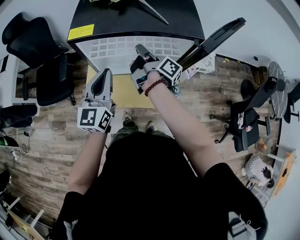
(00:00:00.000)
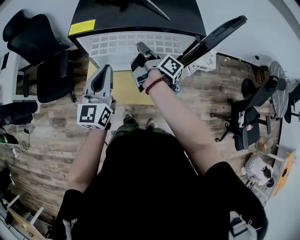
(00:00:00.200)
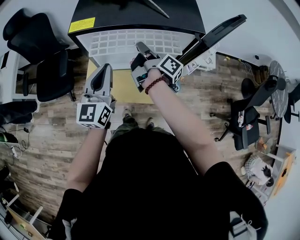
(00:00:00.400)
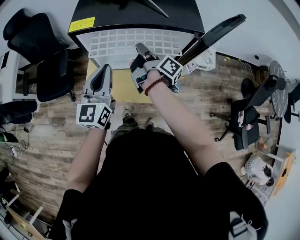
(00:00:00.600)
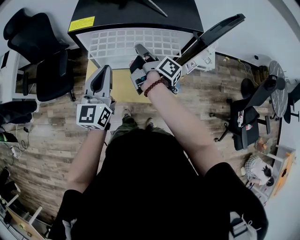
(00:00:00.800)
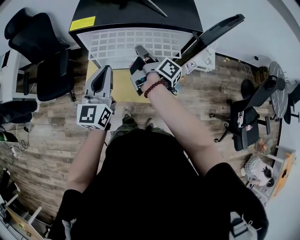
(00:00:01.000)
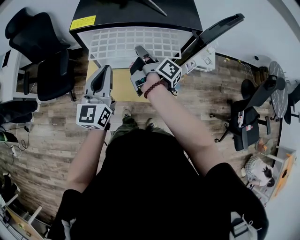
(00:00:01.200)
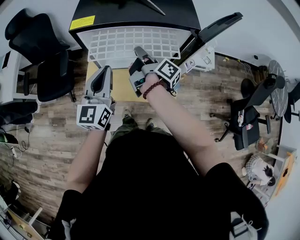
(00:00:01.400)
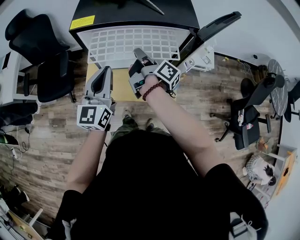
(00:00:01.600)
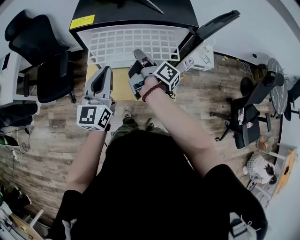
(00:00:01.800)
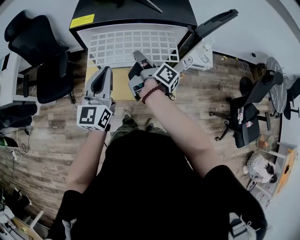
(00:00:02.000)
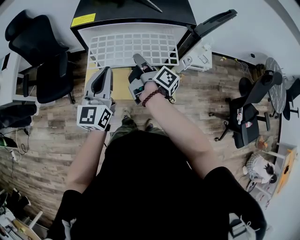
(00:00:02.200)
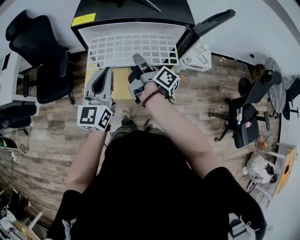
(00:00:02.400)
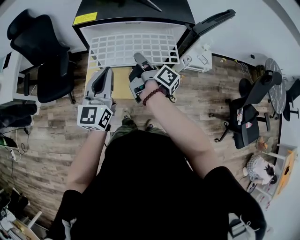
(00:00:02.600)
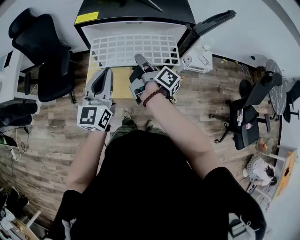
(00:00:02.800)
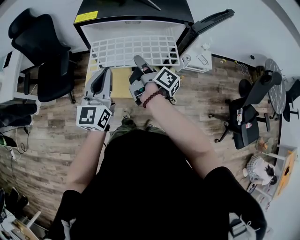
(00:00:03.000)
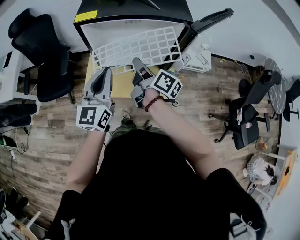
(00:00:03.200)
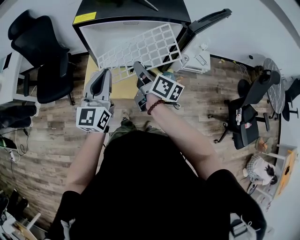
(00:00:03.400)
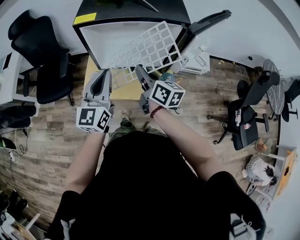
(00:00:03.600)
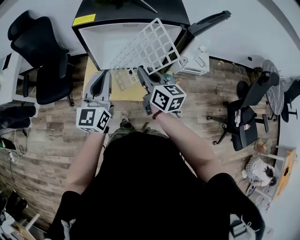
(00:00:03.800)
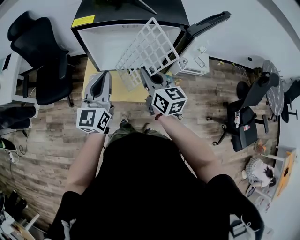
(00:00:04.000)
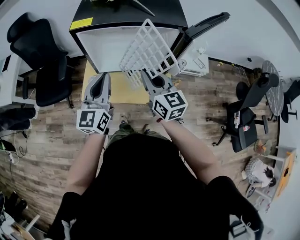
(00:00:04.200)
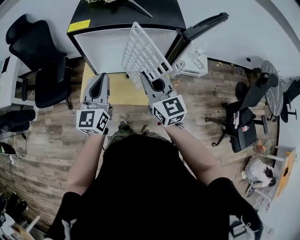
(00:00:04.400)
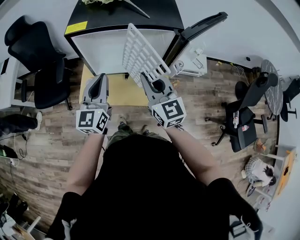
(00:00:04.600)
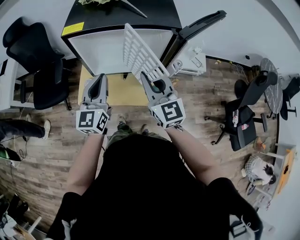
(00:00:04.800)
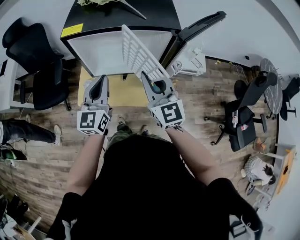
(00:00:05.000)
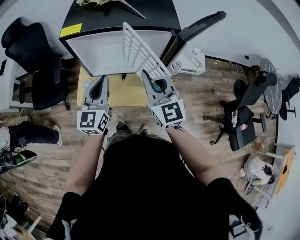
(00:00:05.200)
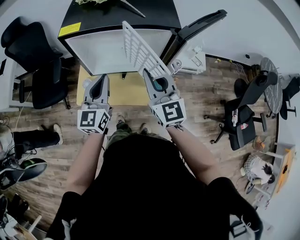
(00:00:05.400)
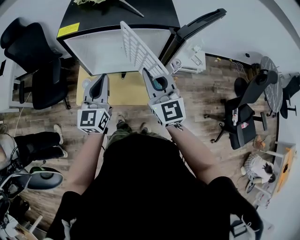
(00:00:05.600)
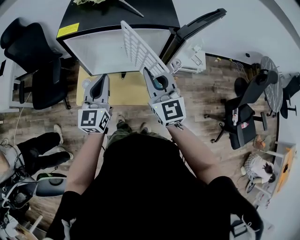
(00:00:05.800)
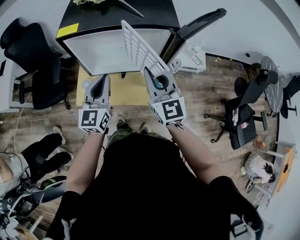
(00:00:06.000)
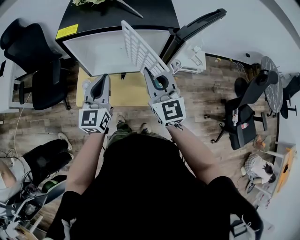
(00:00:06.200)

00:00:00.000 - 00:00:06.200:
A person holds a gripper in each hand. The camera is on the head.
00:00:00.000 - 00:00:01.600: The right gripper heads backward, covering some 5 cm.
00:00:01.600 - 00:00:03.200: The right gripper moves backward, roughly 10 cm.
00:00:03.200 - 00:00:04.600: The right gripper moves upward, approximately 5 cm, and rolls counterclockwise, seen from behind, by about 70 degrees.
00:00:04.600 - 00:00:06.200: The grippers stay close to where they were, moving slightly.

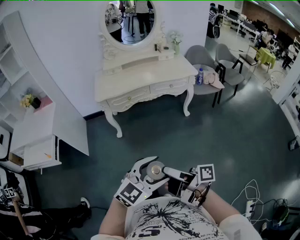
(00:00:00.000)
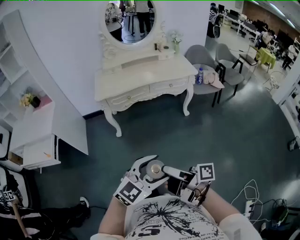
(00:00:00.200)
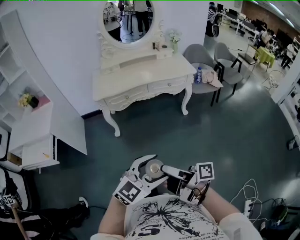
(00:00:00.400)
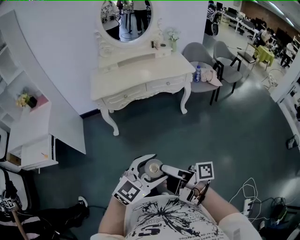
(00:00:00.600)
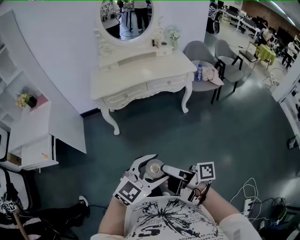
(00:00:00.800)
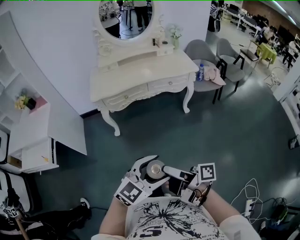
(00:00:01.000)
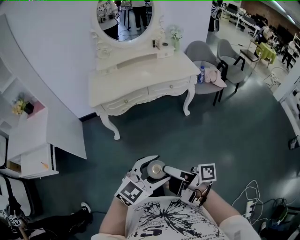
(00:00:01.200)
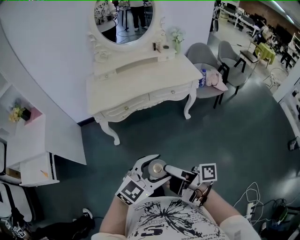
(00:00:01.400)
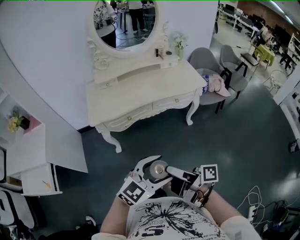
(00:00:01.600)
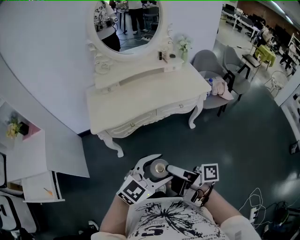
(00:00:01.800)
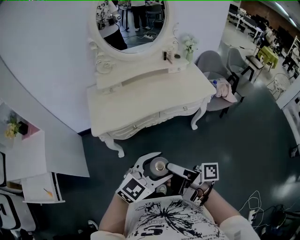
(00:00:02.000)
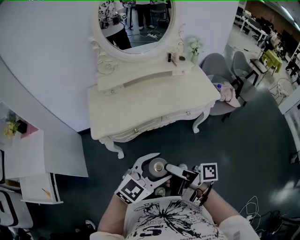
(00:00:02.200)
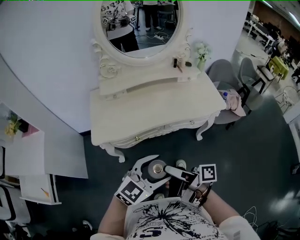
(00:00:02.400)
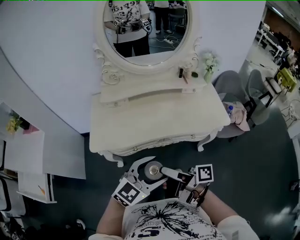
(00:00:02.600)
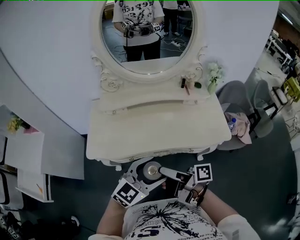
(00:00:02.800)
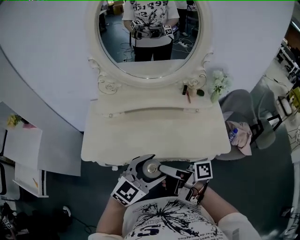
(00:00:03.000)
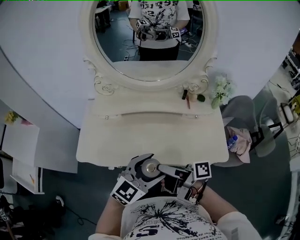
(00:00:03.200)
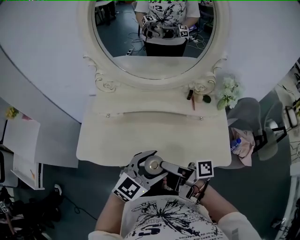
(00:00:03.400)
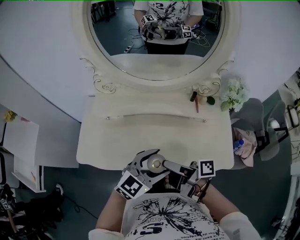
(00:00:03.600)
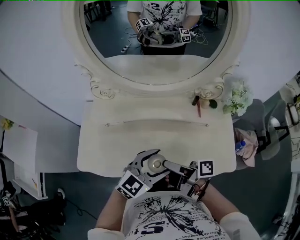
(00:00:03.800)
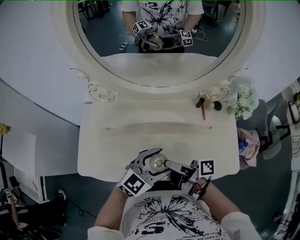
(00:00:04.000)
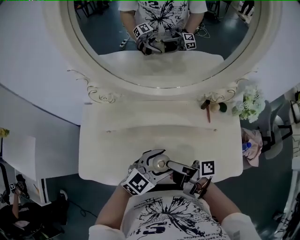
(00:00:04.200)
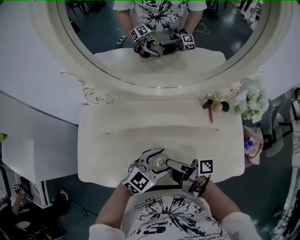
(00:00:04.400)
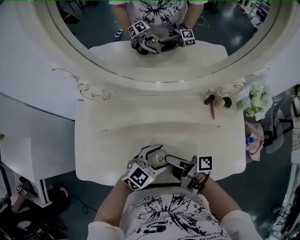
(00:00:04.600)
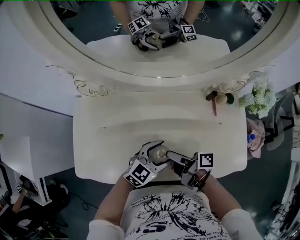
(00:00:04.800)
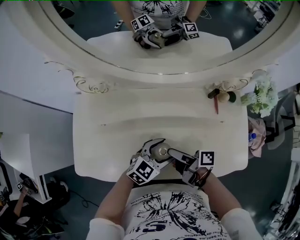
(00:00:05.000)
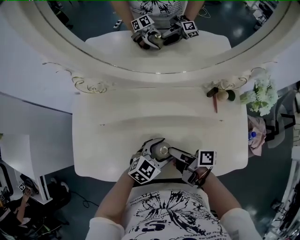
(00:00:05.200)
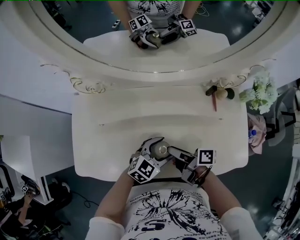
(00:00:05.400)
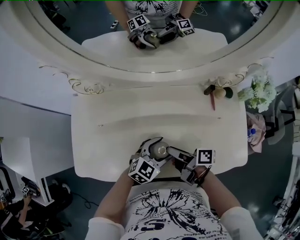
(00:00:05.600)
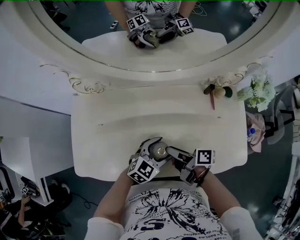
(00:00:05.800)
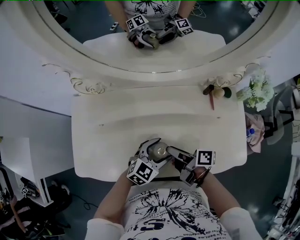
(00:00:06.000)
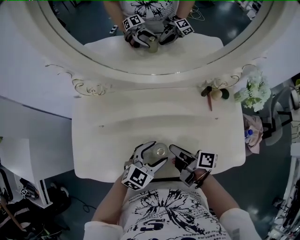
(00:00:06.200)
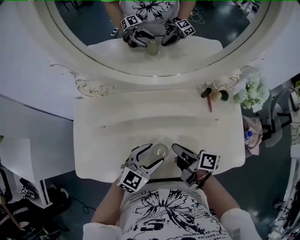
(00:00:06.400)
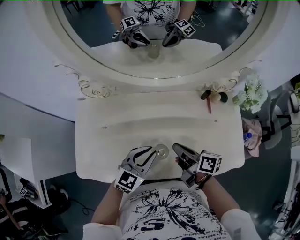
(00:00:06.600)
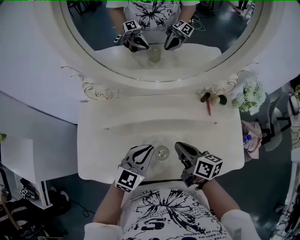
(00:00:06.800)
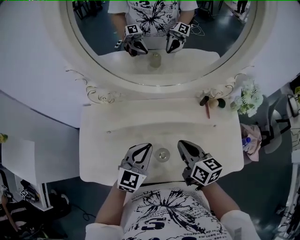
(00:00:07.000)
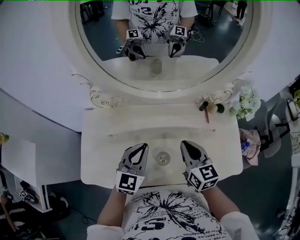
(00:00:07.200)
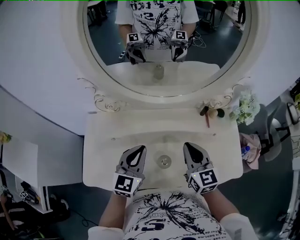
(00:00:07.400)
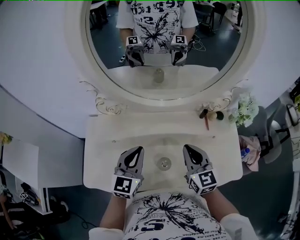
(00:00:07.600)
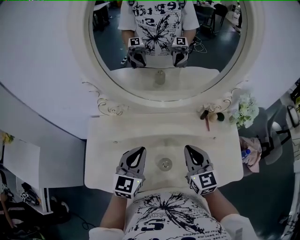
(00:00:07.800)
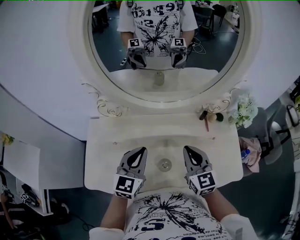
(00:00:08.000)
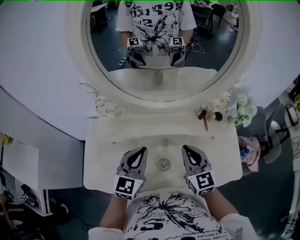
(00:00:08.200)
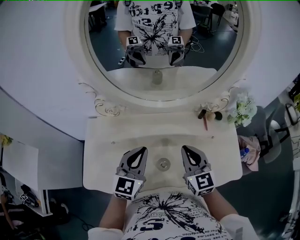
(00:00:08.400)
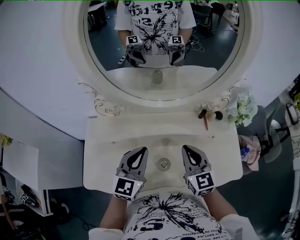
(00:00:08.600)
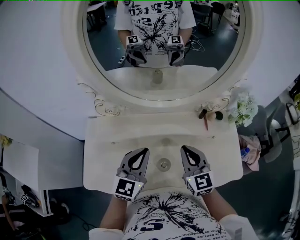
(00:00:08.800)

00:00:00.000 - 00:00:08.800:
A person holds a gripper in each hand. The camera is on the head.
00:00:00.000 - 00:00:01.400: The left gripper ends up some 15 cm from where it was.
00:00:01.400 - 00:00:03.000: The left gripper moves roughly 50 cm.
00:00:03.000 - 00:00:04.400: The left gripper changes place by approximately 25 cm.
00:00:04.400 - 00:00:05.800: The left gripper shifts approximately 10 cm downward.
00:00:05.800 - 00:00:07.400: The left gripper goes some 15 cm upward, turns by some 40 degrees, and closes its fingers.

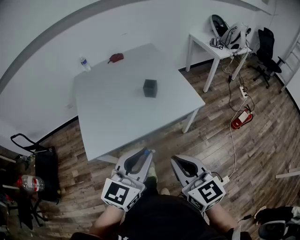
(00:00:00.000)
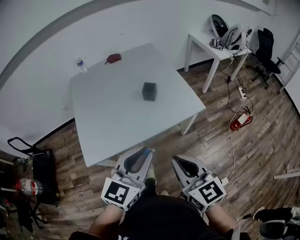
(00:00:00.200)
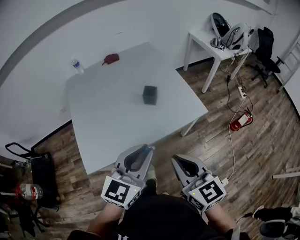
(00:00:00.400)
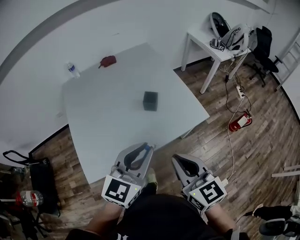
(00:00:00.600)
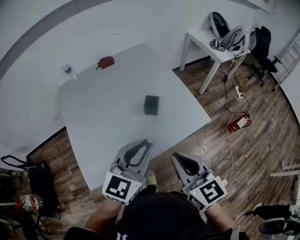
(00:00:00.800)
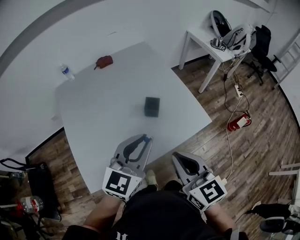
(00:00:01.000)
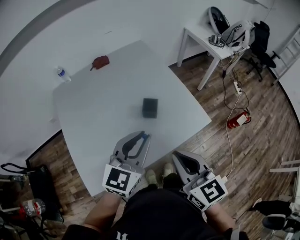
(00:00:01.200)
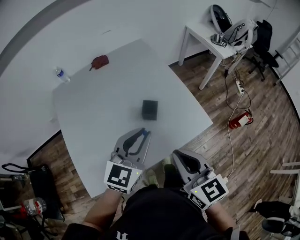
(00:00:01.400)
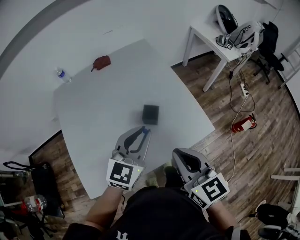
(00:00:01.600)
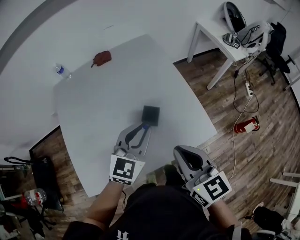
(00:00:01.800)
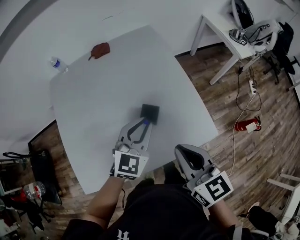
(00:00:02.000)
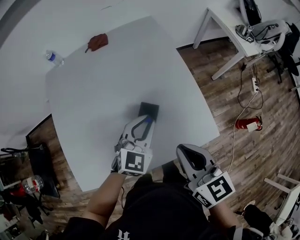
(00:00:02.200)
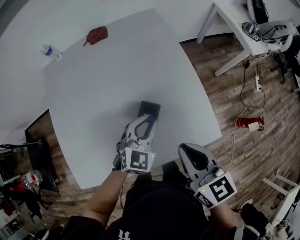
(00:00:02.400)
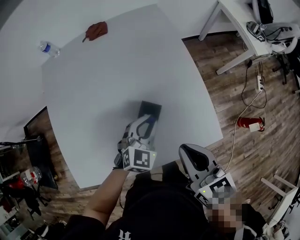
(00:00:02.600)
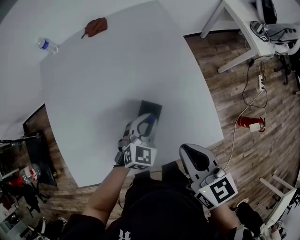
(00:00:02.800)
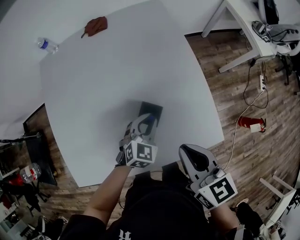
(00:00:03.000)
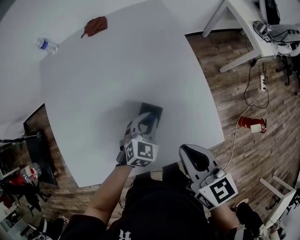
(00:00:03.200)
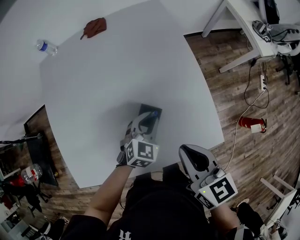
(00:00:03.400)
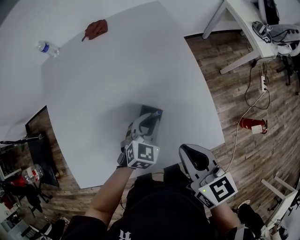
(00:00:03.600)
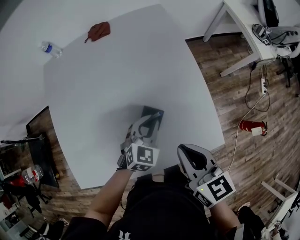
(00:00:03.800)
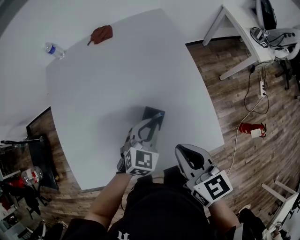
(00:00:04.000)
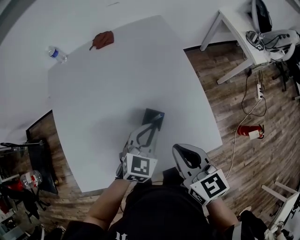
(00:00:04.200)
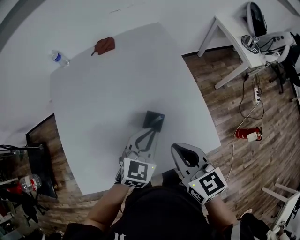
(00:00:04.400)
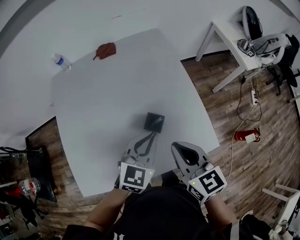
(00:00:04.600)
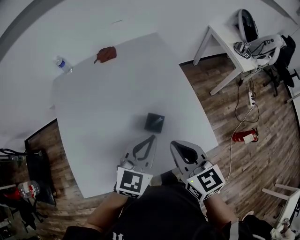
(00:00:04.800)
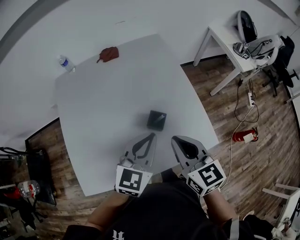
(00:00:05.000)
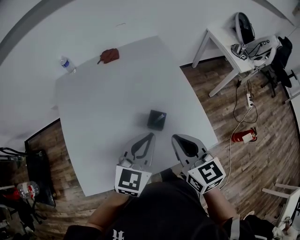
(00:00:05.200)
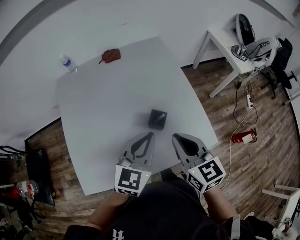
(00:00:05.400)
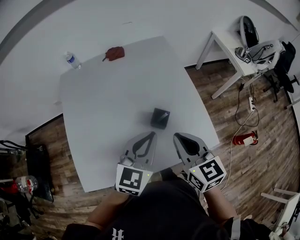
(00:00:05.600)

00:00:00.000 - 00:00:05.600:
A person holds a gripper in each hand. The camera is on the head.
00:00:00.000 - 00:00:01.400: Both grippers travel together forward, about 30 cm.
00:00:01.400 - 00:00:02.800: The right gripper shifts roughly 20 cm forward and downward, while the left gripper is displaced downward and forward by roughly 30 cm, and turns by roughly 30 degrees.
00:00:02.800 - 00:00:04.200: The left gripper heads upward, covering roughly 5 cm.
00:00:04.200 - 00:00:05.600: The left gripper travels upward and backward by some 15 cm; the right gripper goes roughly 5 cm upward.

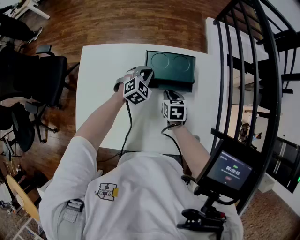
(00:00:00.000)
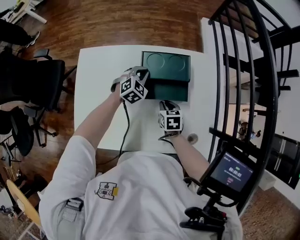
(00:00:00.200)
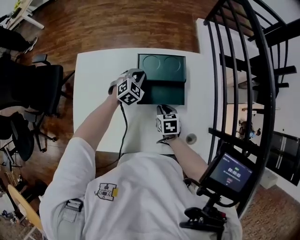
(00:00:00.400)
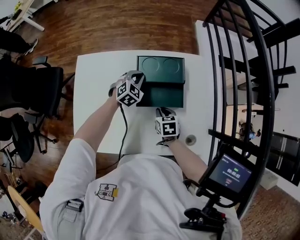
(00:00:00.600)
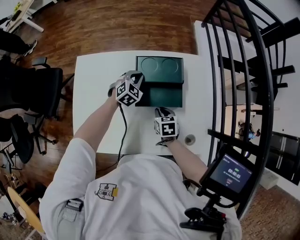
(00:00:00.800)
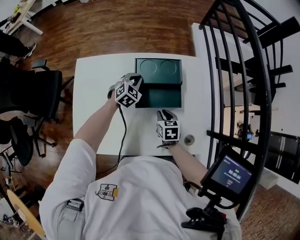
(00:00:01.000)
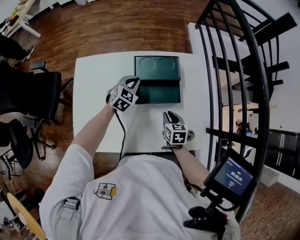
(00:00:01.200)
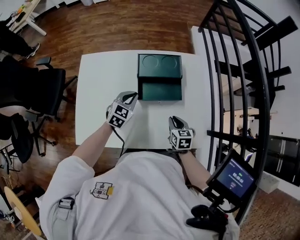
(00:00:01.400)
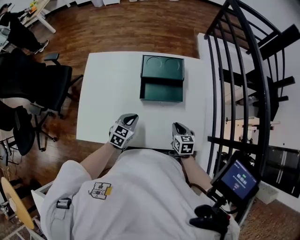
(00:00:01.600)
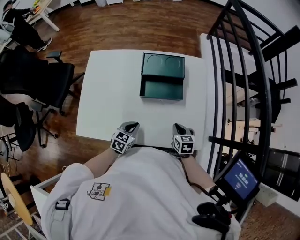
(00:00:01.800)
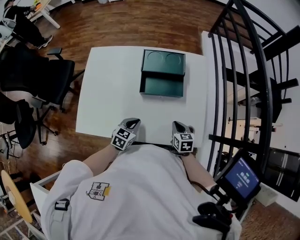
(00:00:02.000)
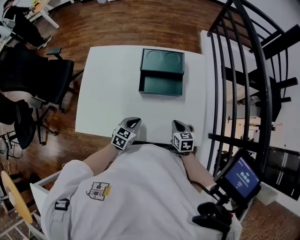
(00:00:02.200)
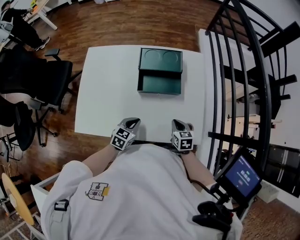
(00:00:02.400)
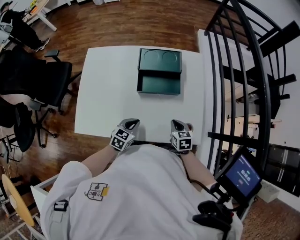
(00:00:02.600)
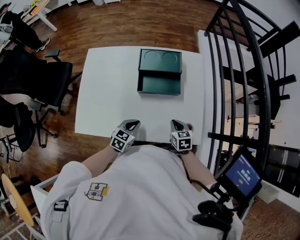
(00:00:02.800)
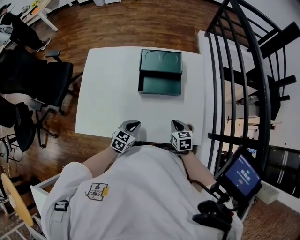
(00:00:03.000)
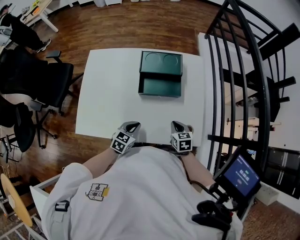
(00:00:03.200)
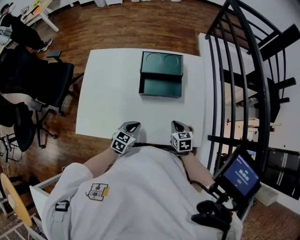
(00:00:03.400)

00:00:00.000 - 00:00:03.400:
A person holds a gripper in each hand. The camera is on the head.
00:00:00.000 - 00:00:01.600: The right gripper goes roughly 20 cm backward and to the right. The left gripper shifts approximately 25 cm backward, and turns by some 30 degrees.
00:00:01.600 - 00:00:03.400: The left gripper shifts some 5 cm backward.
